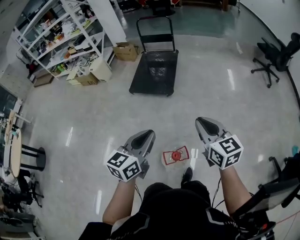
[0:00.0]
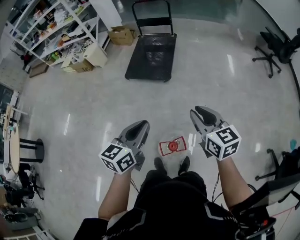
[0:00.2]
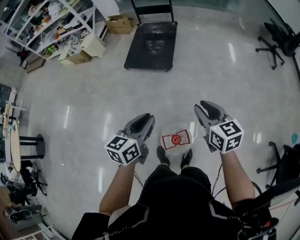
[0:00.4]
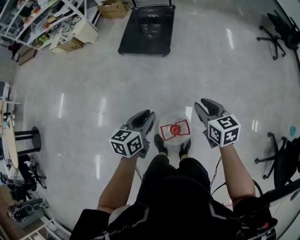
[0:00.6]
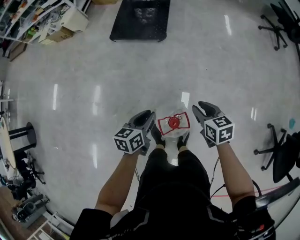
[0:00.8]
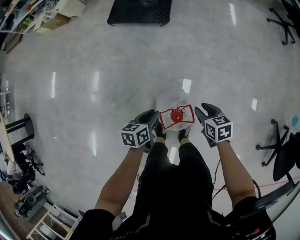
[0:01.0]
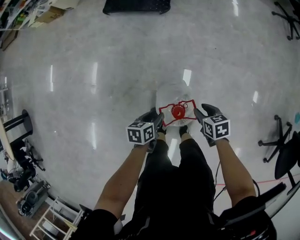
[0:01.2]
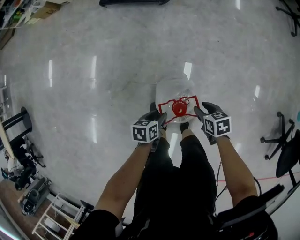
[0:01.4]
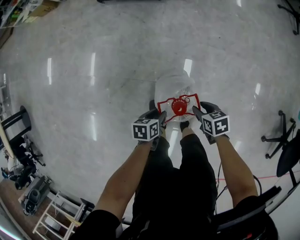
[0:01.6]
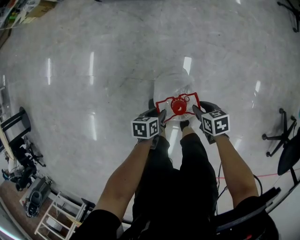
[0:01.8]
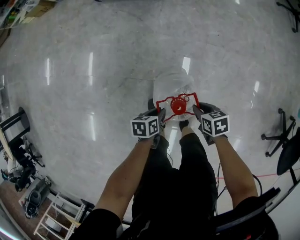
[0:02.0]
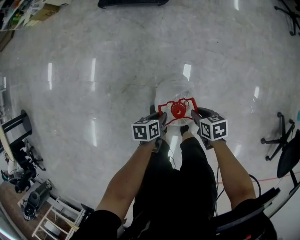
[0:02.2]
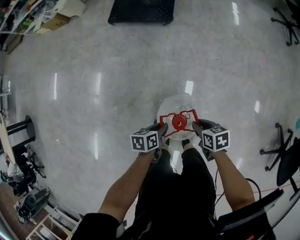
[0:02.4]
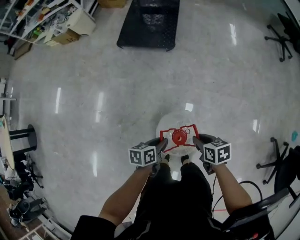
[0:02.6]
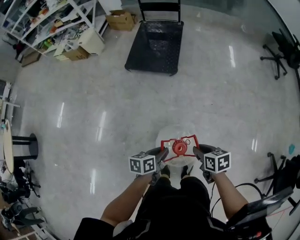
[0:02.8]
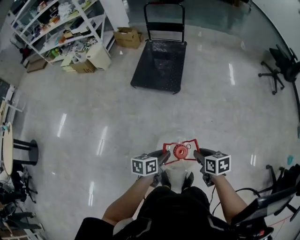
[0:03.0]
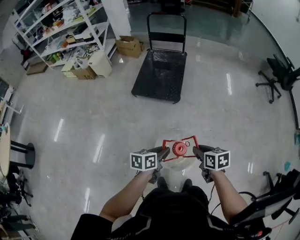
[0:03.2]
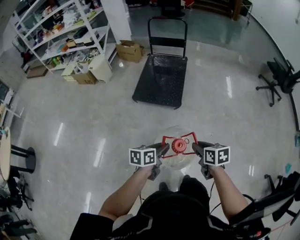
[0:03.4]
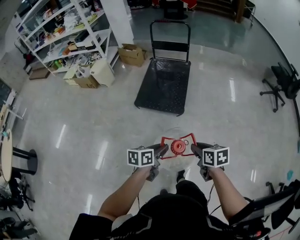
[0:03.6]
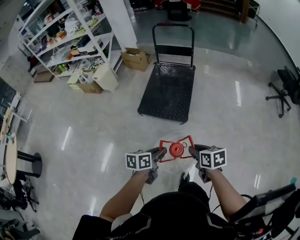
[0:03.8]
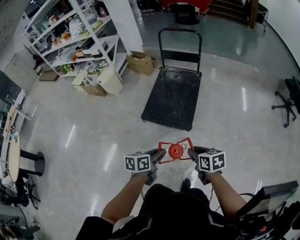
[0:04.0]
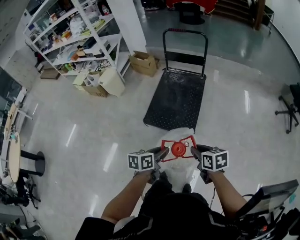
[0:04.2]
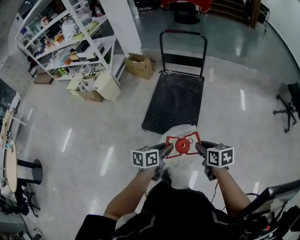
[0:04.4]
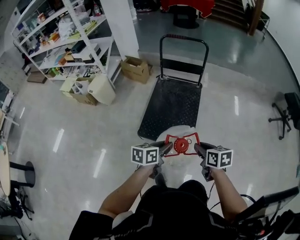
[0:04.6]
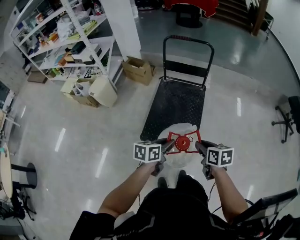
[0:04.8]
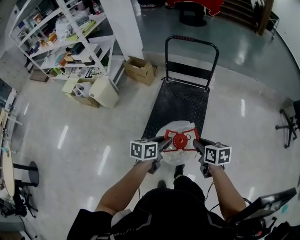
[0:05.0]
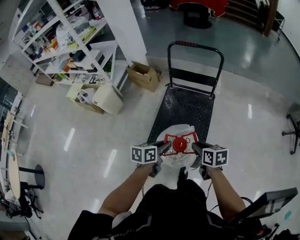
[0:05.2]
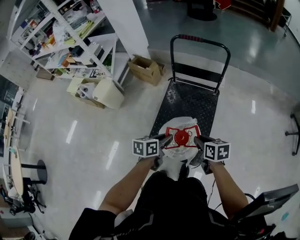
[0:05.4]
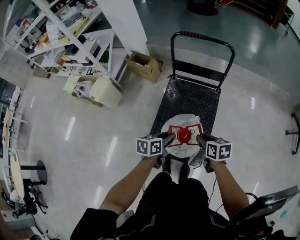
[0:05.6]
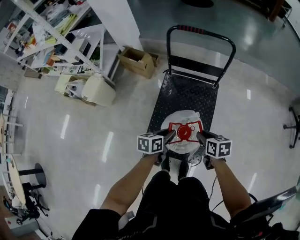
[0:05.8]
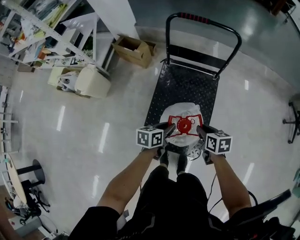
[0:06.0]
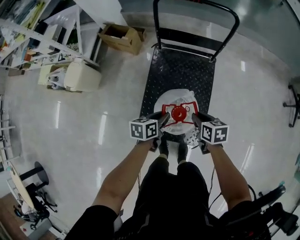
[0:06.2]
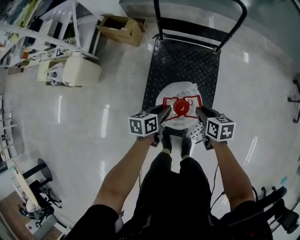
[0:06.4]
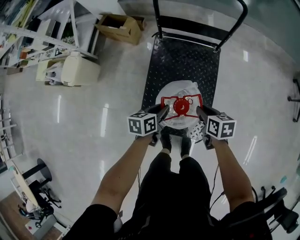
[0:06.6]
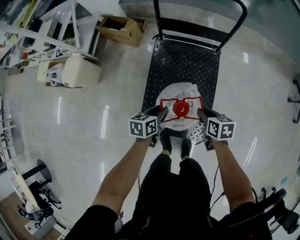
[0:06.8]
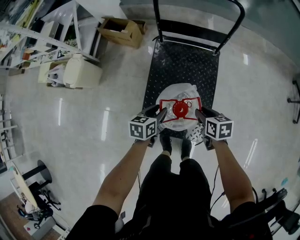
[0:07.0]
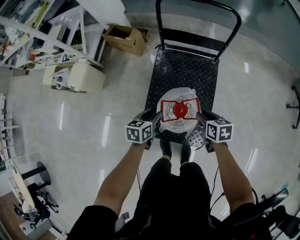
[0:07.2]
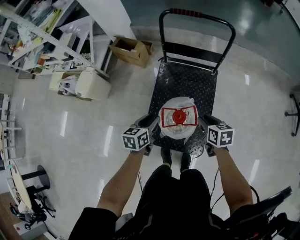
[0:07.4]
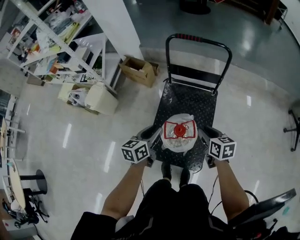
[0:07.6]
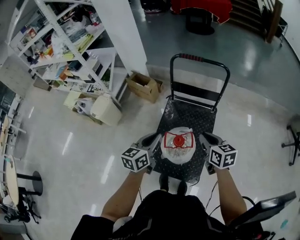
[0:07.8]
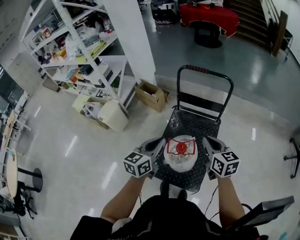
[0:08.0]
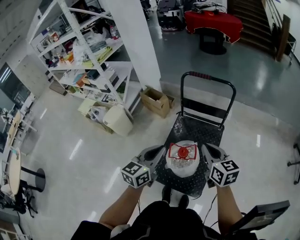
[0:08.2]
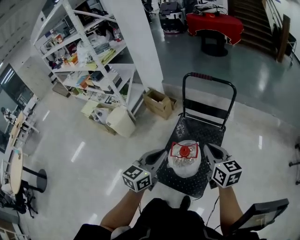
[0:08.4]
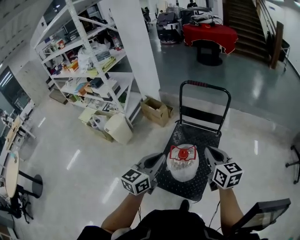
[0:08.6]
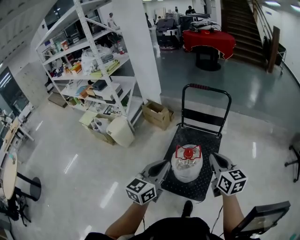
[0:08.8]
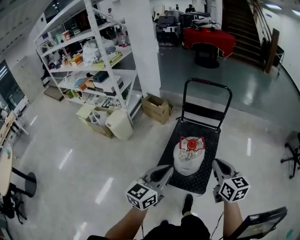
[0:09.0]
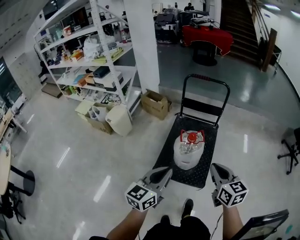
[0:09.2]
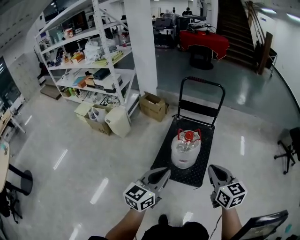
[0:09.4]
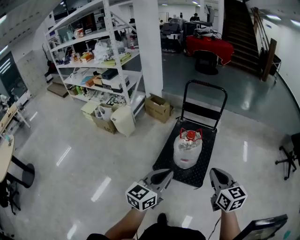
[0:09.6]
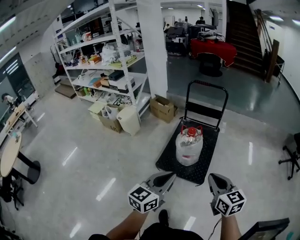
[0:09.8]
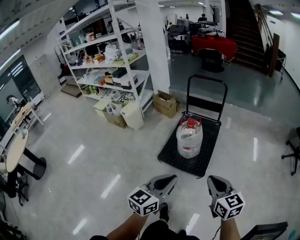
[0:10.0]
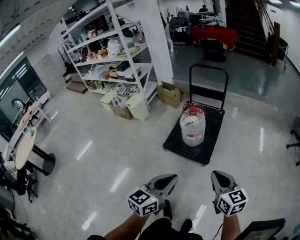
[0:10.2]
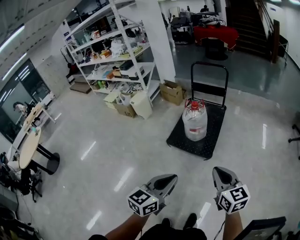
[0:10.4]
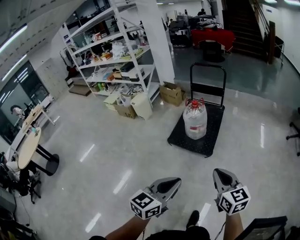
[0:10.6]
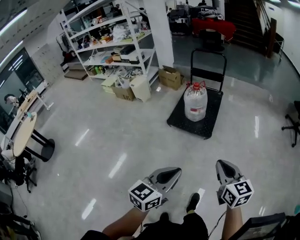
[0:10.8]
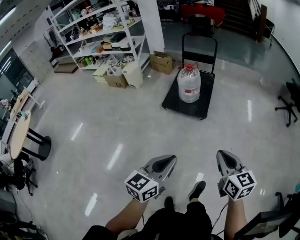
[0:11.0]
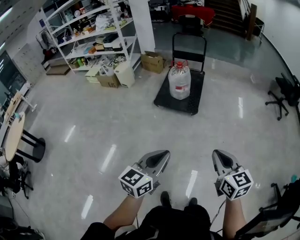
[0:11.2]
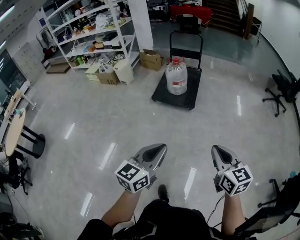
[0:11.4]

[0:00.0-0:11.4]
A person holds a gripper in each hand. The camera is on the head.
0:00.0 to 0:01.4: The two grippers go approximately 50 cm downward. The right gripper angles its fingers downward, by about 40 degrees, and opens. Meanwhile the left gripper angles its fingers downward, by about 40 degrees, and opens its fingers.
0:01.4 to 0:02.8: The two grippers go roughly 25 cm upward.
0:02.8 to 0:04.2: The pair of grippers is taken forward, approximately 50 cm.
0:04.2 to 0:05.6: The pair of grippers is taken forward, some 50 cm.
0:05.6 to 0:07.2: The right gripper is displaced downward and forward by approximately 15 cm, while the left gripper moves downward, forward and to the left, approximately 15 cm.
0:07.2 to 0:08.6: The left gripper travels upward and backward by approximately 40 cm, angles its fingers upward, by about 30 degrees, and closes its fingers; the right gripper shifts roughly 35 cm upward, tips its fingers upward by roughly 40 degrees, and closes its fingers.
0:08.6 to 0:10.0: The two grippers travel together, backward, approximately 50 cm.
0:10.0 to 0:11.4: The pair of grippers is taken backward, about 50 cm.

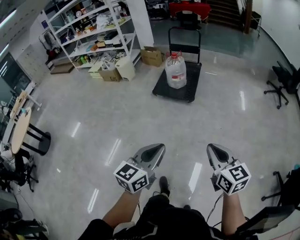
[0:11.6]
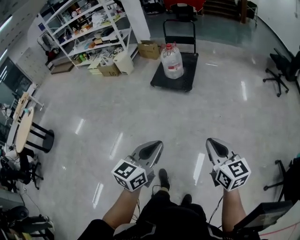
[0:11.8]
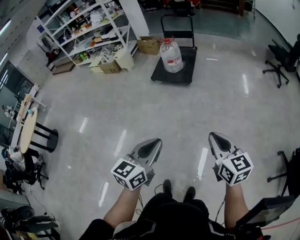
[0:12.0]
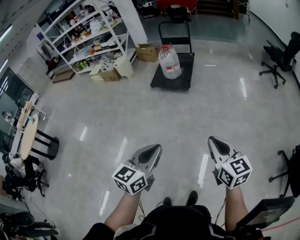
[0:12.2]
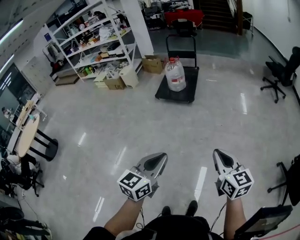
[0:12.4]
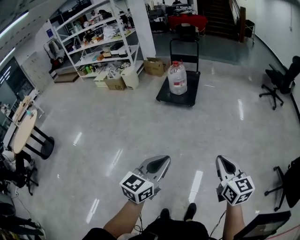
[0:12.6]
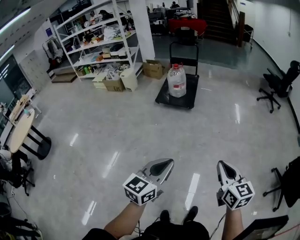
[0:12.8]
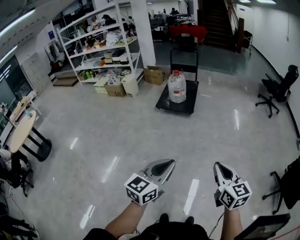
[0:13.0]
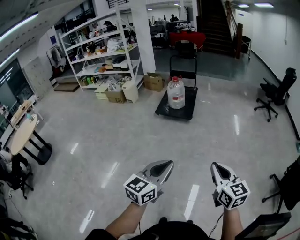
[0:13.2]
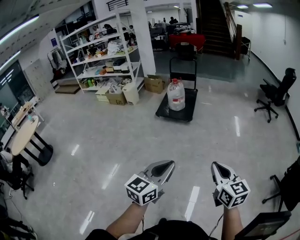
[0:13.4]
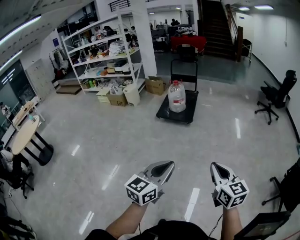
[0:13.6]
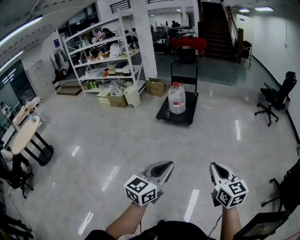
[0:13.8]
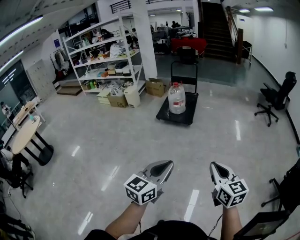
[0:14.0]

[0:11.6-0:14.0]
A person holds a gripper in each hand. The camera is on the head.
0:11.6 to 0:12.8: The two grippers go about 20 cm backward.
0:12.8 to 0:14.0: The right gripper moves some 5 cm, while the left gripper is displaced upward by roughly 5 cm.

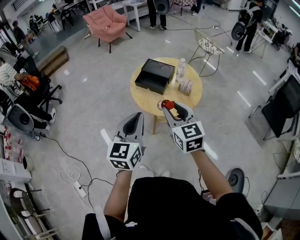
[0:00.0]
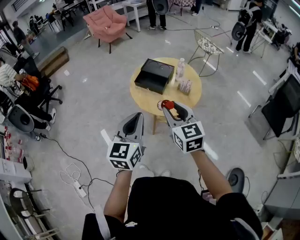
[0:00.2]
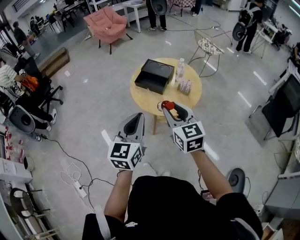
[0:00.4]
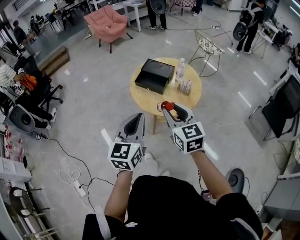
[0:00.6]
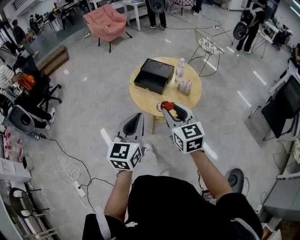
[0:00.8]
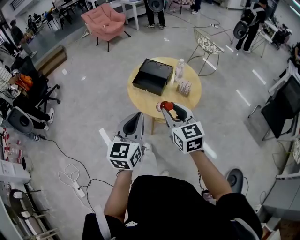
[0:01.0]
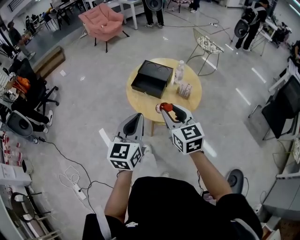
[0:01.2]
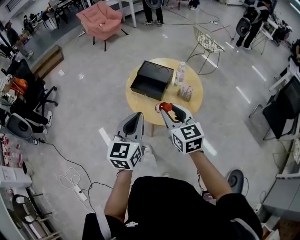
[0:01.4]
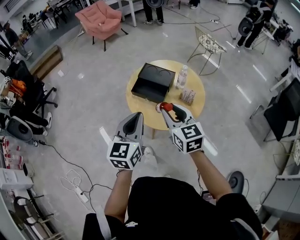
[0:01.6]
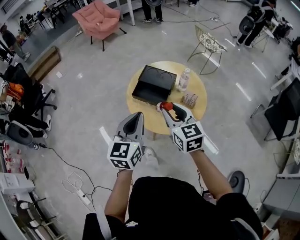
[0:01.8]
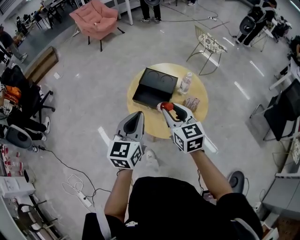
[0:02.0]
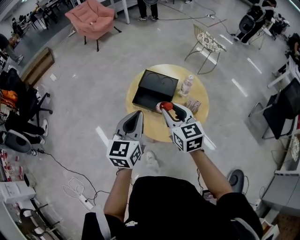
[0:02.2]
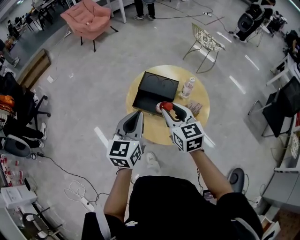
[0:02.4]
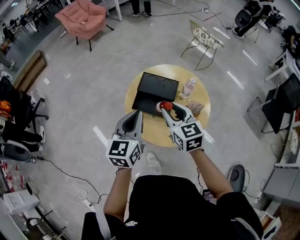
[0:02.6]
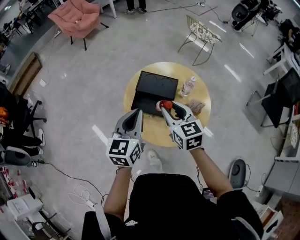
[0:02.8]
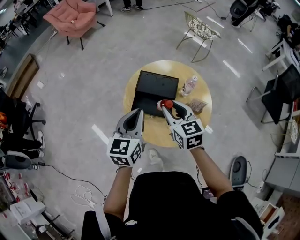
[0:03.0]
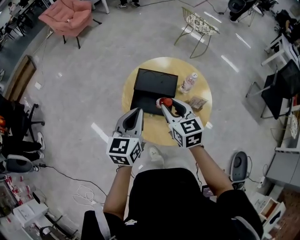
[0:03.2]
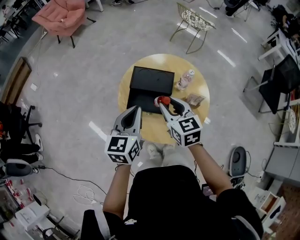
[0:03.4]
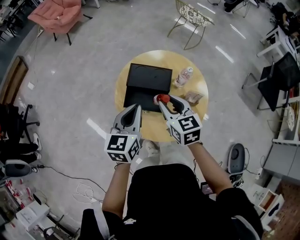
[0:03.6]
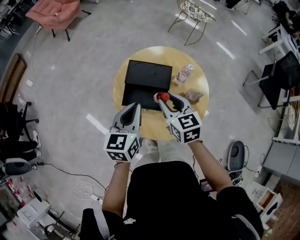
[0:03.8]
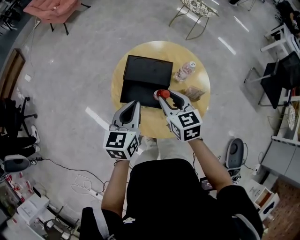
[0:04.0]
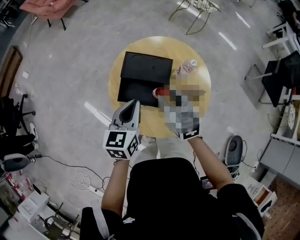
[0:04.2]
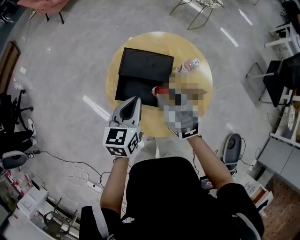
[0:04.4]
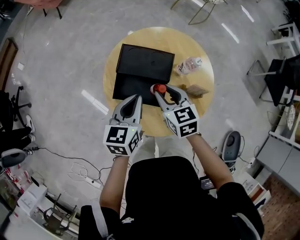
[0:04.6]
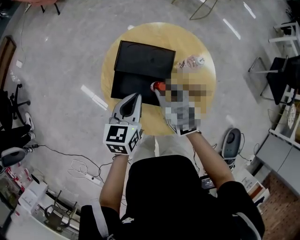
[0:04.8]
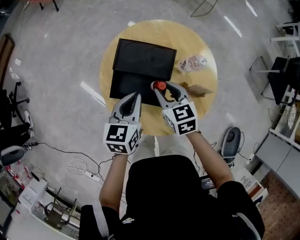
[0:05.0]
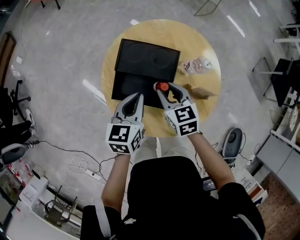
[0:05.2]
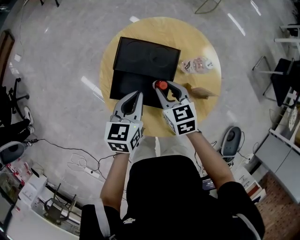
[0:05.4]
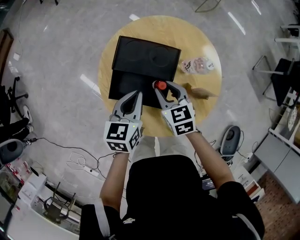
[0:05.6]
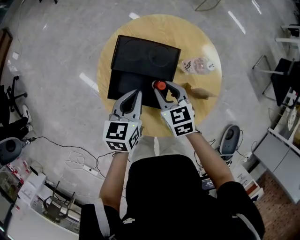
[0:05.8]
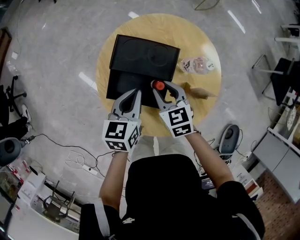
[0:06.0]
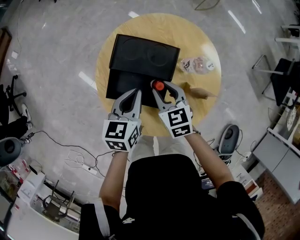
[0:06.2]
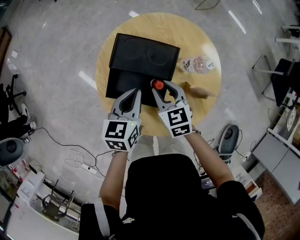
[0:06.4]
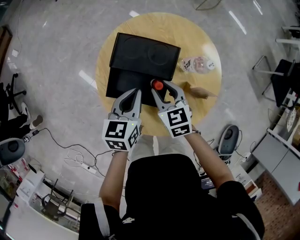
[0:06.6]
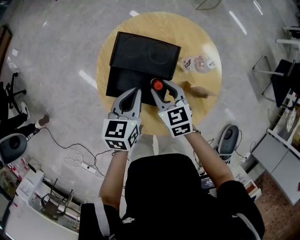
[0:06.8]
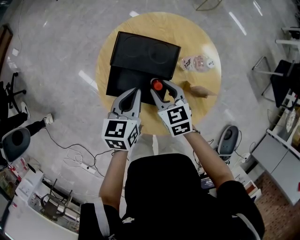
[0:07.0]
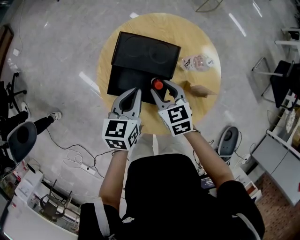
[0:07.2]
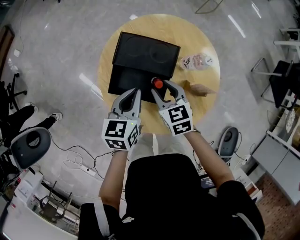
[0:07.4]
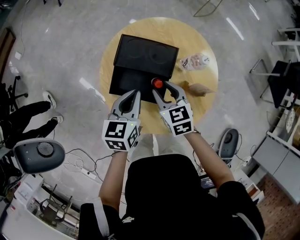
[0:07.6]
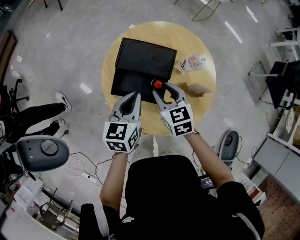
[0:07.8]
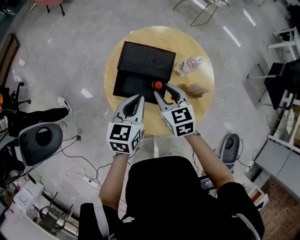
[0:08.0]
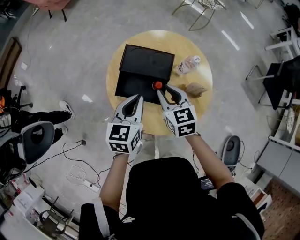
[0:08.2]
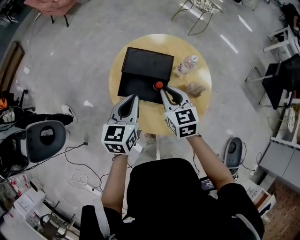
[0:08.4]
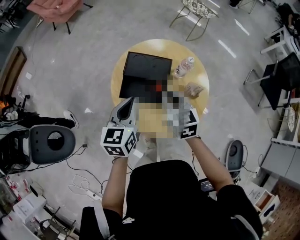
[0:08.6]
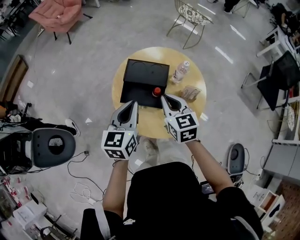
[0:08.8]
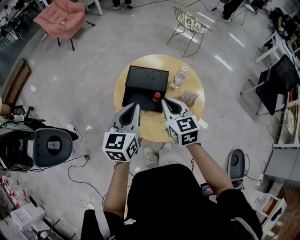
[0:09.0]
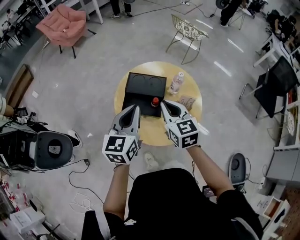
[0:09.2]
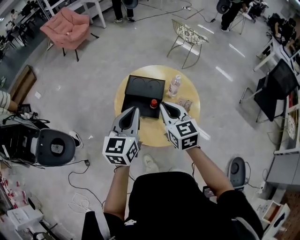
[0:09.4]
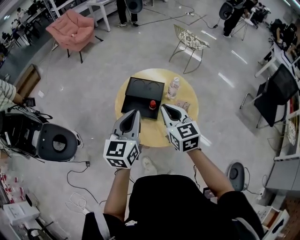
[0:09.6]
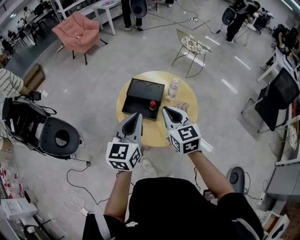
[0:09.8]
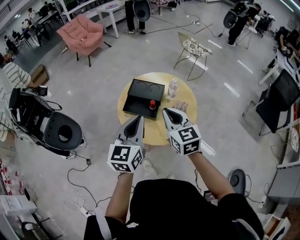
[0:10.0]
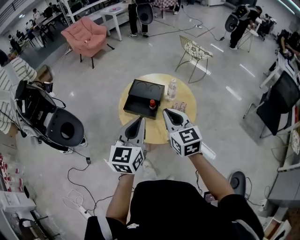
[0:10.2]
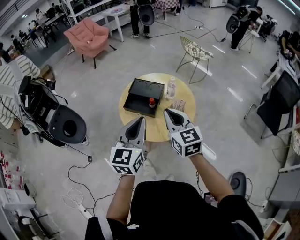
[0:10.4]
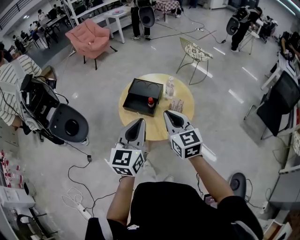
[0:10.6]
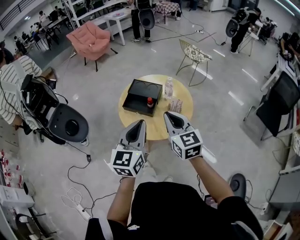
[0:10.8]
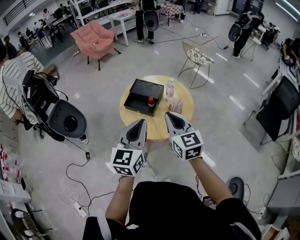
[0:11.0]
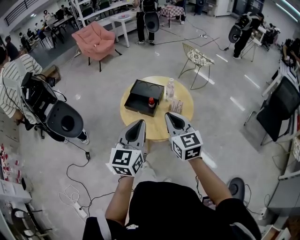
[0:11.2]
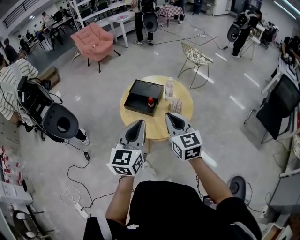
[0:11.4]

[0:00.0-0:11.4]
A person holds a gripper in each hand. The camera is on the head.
0:00.0 to 0:01.4: The two grippers go roughly 10 cm forward.
0:01.4 to 0:02.8: Both grippers move forward, some 25 cm.
0:02.8 to 0:04.2: Both grippers travel together downward and forward, roughly 10 cm.
0:04.2 to 0:05.6: The left gripper shifts some 10 cm downward and forward; the right gripper shifts roughly 10 cm downward.
0:05.6 to 0:07.2: The grippers move only a little.
0:07.2 to 0:08.6: The right gripper is displaced upward by roughly 15 cm, and closes up. Meanwhile the left gripper goes some 15 cm upward and backward.
0:08.6 to 0:10.0: The right gripper moves upward and backward, roughly 20 cm. Meanwhile the left gripper goes approximately 20 cm upward, backward and to the right.
0:10.0 to 0:11.4: The grippers both shift backward by about 10 cm.
